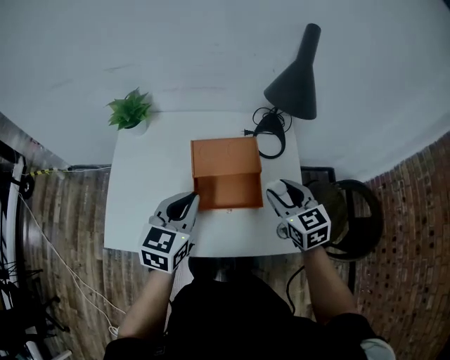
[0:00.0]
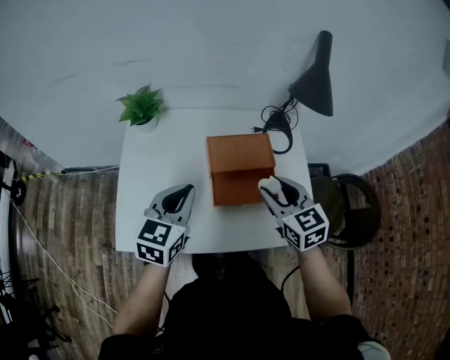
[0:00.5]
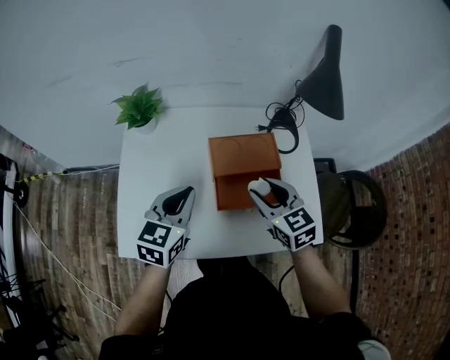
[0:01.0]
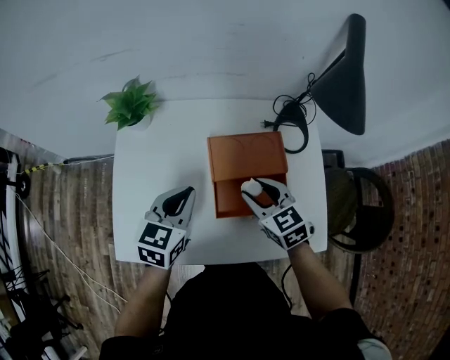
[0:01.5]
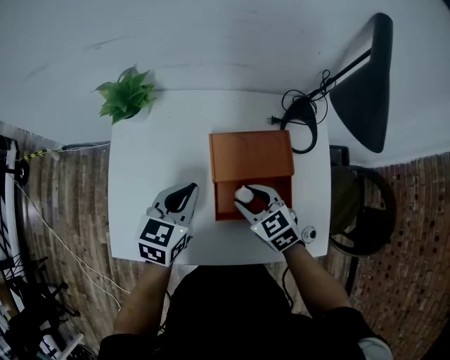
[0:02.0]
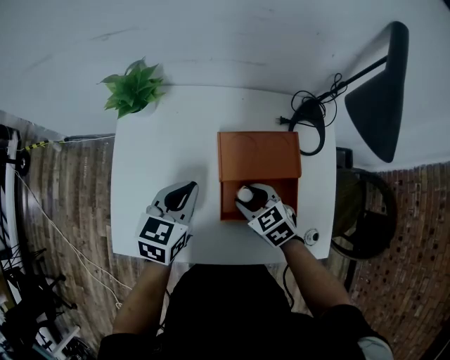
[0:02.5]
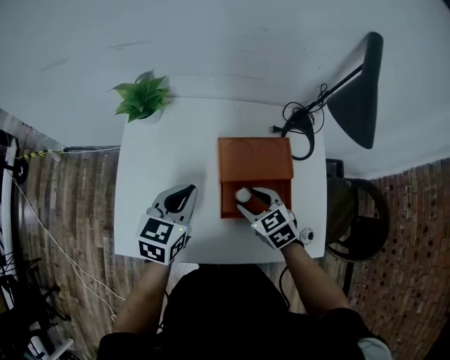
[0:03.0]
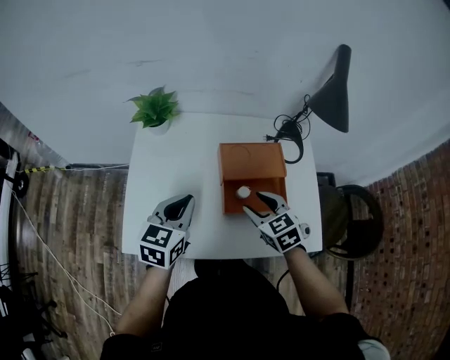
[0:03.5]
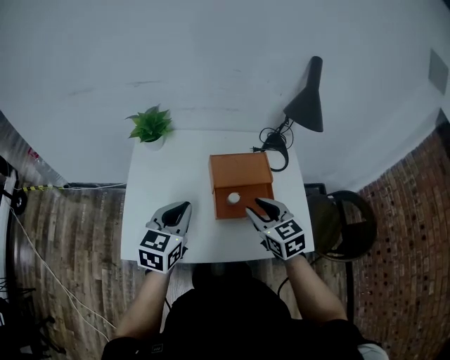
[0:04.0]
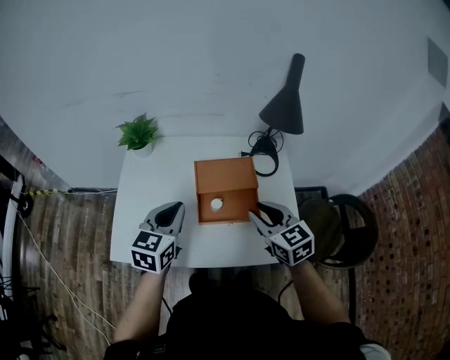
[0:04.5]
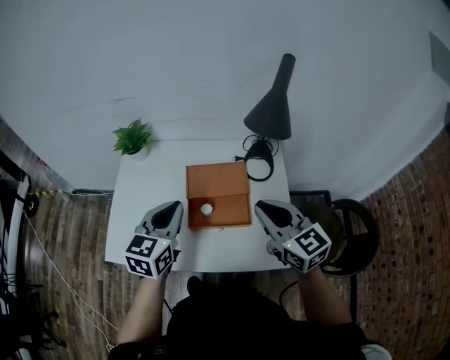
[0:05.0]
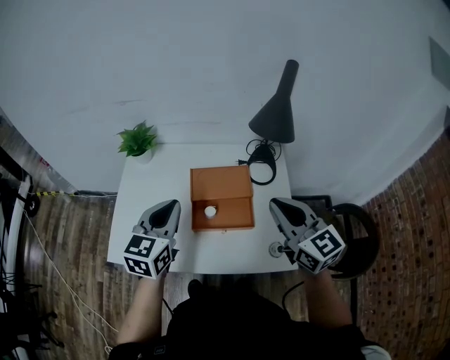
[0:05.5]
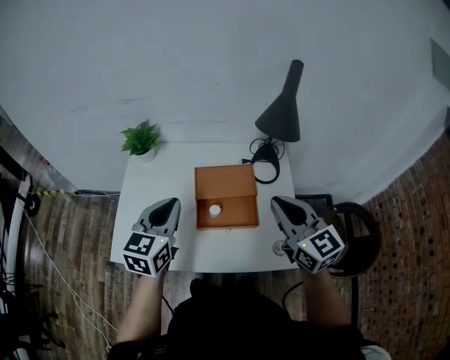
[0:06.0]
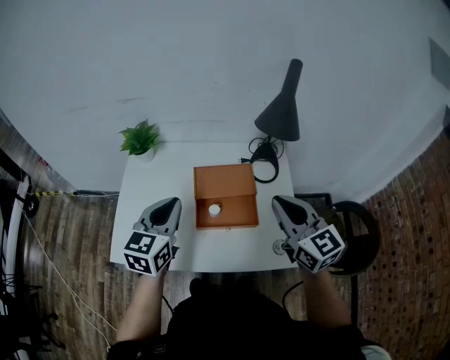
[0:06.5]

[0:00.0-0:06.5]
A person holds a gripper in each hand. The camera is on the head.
0:00.0 to 0:02.0: The right gripper heads to the left and downward, covering roughly 20 cm, and changes its angle by approximately 20 degrees. Meanwhile the left gripper travels downward, forward and to the left by roughly 15 cm.
0:02.0 to 0:04.5: The right gripper heads upward, backward and to the right, covering about 20 cm, and rotates about 20 degrees, while the left gripper goes approximately 15 cm upward and backward.
0:04.5 to 0:06.5: The right gripper is displaced upward and to the right by roughly 10 cm, and closes. The left gripper heads upward, covering some 5 cm.

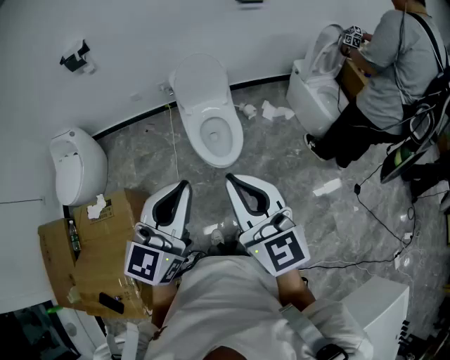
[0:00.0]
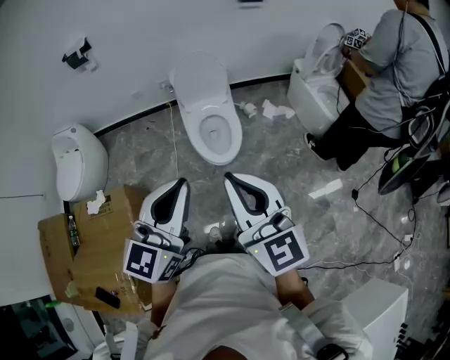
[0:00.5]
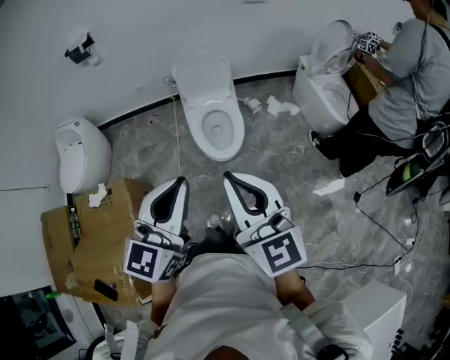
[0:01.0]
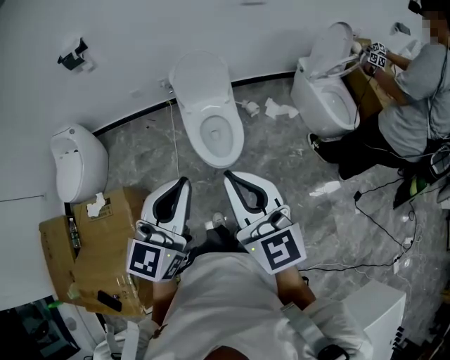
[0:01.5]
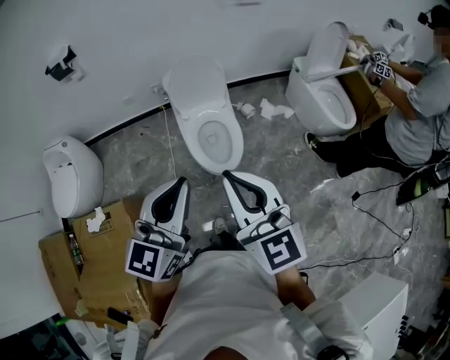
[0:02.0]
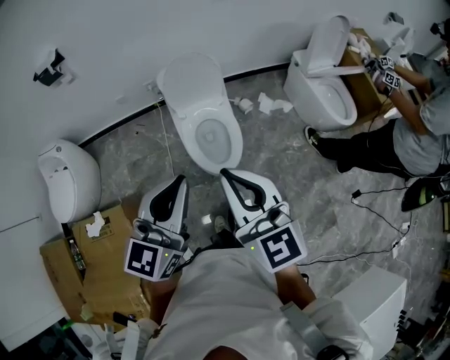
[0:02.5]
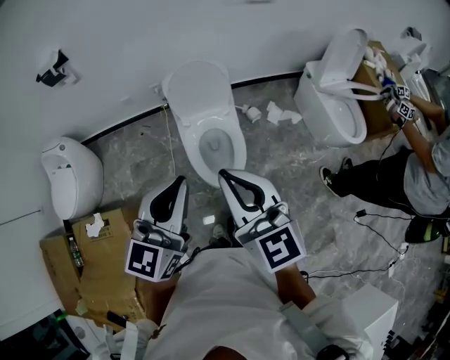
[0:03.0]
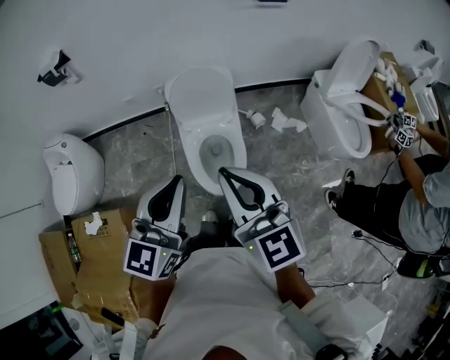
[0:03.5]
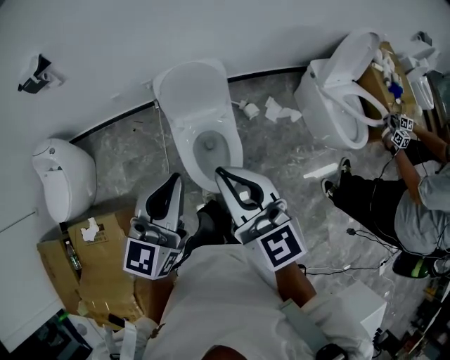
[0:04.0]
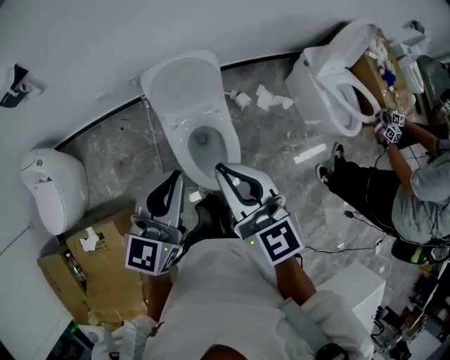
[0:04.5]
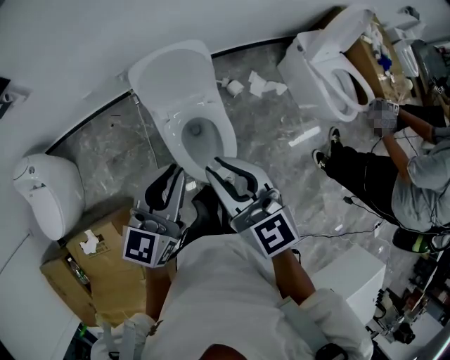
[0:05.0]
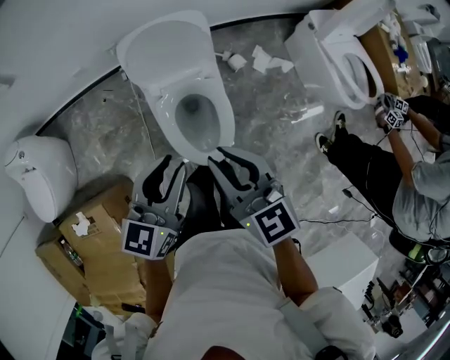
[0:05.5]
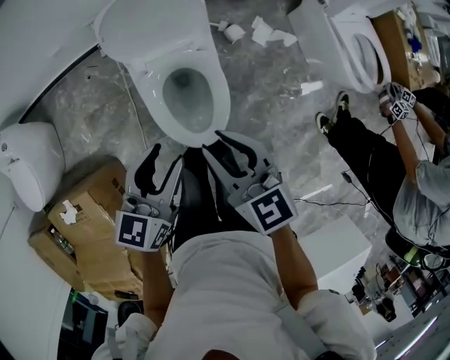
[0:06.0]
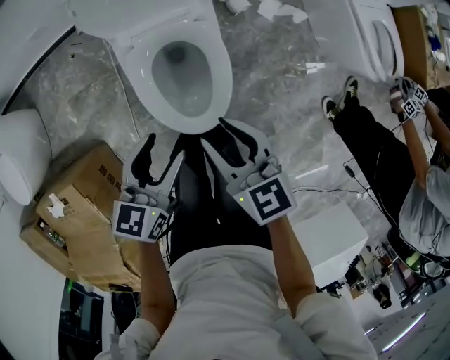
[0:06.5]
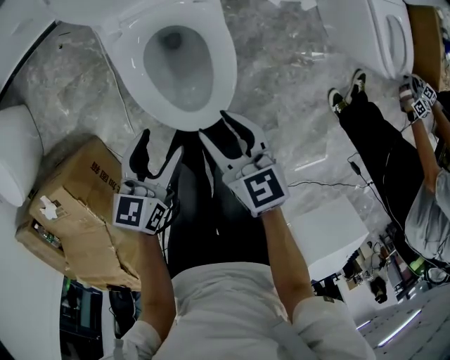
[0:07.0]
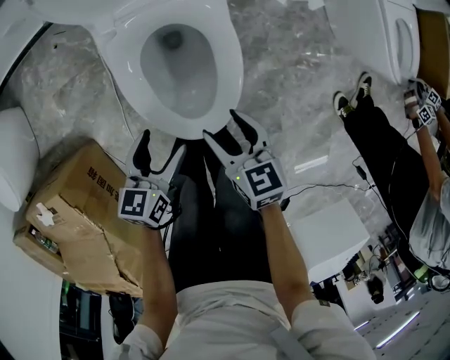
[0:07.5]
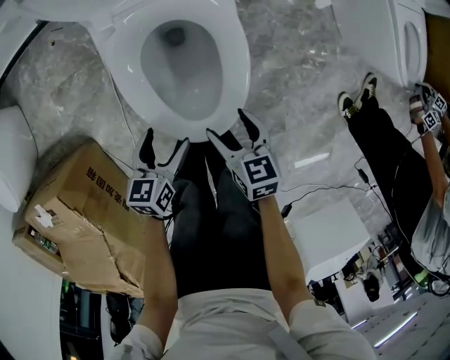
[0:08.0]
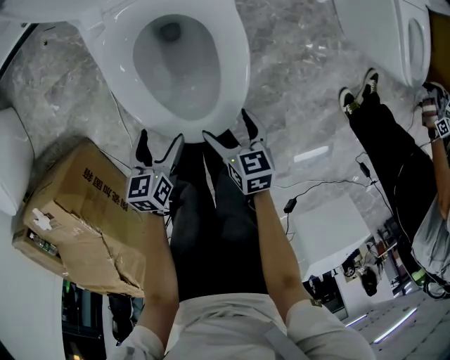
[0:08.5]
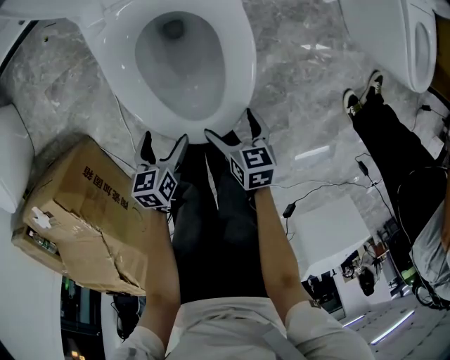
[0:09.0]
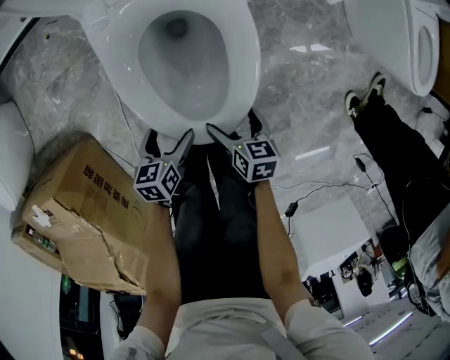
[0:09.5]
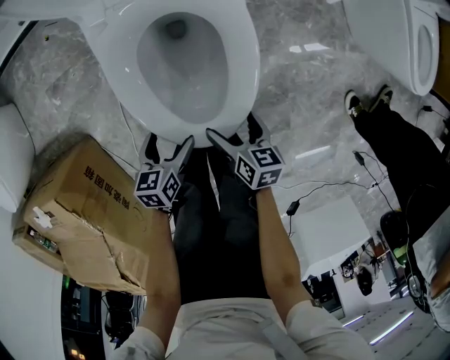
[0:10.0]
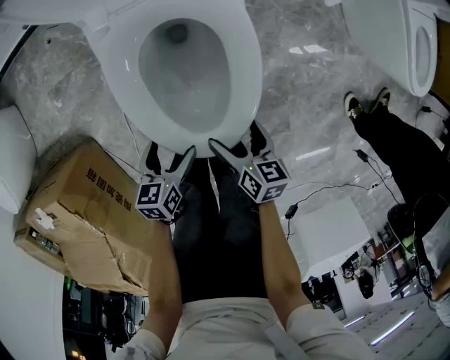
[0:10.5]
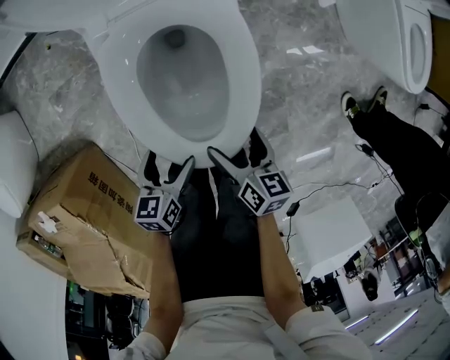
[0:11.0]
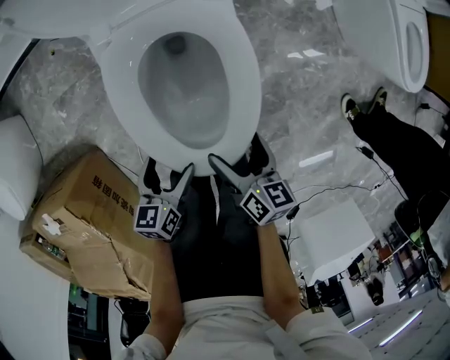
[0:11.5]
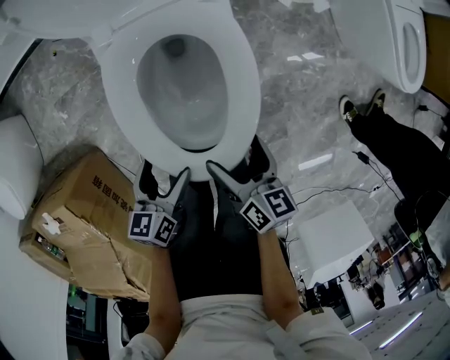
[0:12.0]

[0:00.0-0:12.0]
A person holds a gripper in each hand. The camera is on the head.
0:00.0 to 0:02.0: Both grippers travel together forward, approximately 10 cm.
0:02.0 to 0:04.0: Both grippers move forward, about 25 cm.
0:04.0 to 0:06.0: Both grippers travel together downward, roughly 25 cm. The left gripper swivels about 30 degrees, and opens. The right gripper changes its angle by some 30 degrees.
0:06.0 to 0:08.0: Both grippers travel together downward, about 40 cm. The left gripper swivels about 30 degrees, and opens up. Meanwhile the right gripper swivels some 30 degrees, and opens.
0:08.0 to 0:10.0: Both grippers move downward, roughly 10 cm.
0:10.0 to 0:12.0: Both grippers move upward, approximately 15 cm.

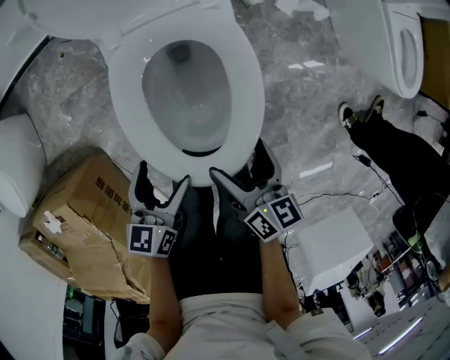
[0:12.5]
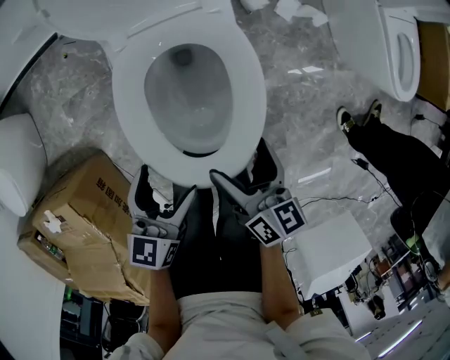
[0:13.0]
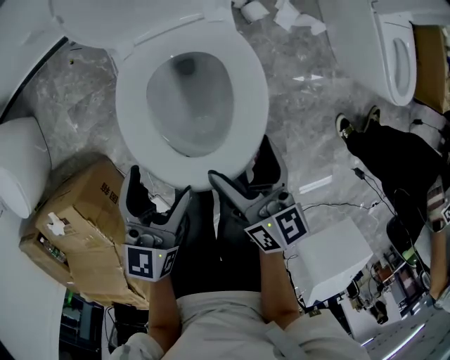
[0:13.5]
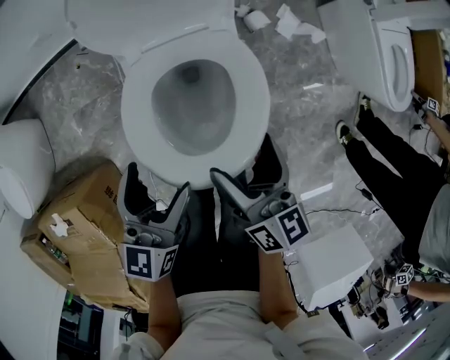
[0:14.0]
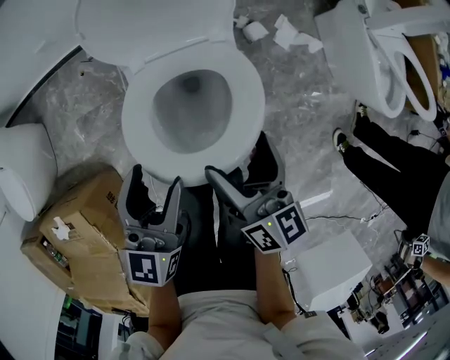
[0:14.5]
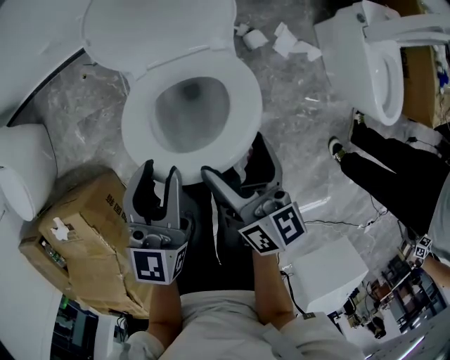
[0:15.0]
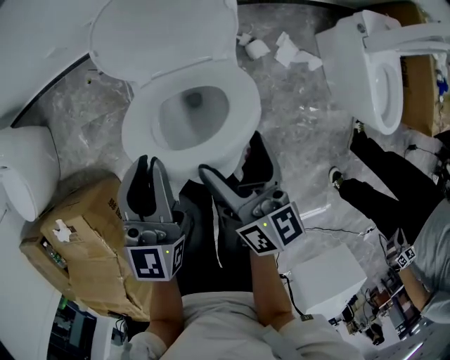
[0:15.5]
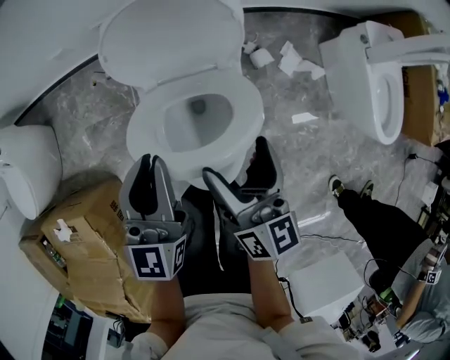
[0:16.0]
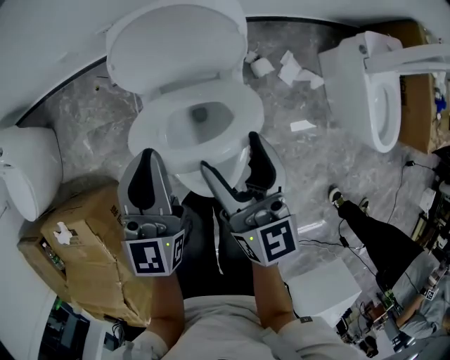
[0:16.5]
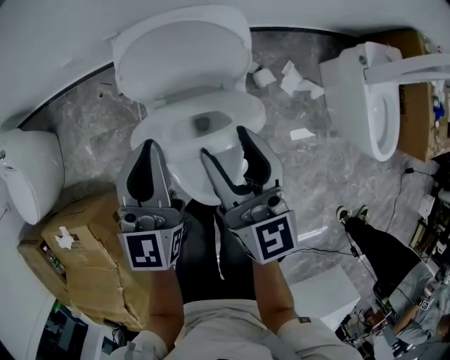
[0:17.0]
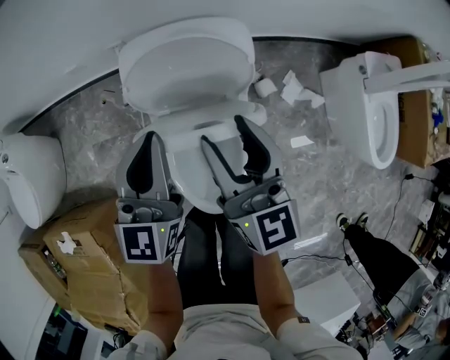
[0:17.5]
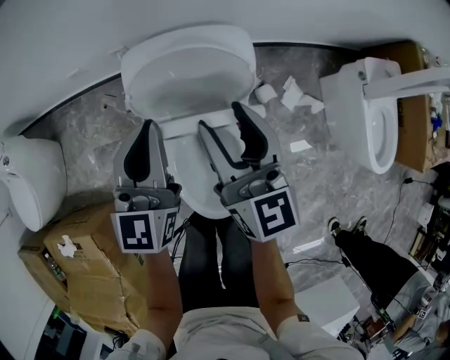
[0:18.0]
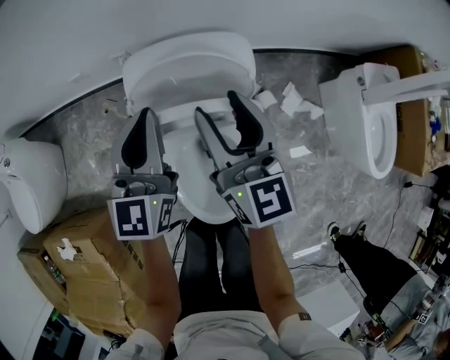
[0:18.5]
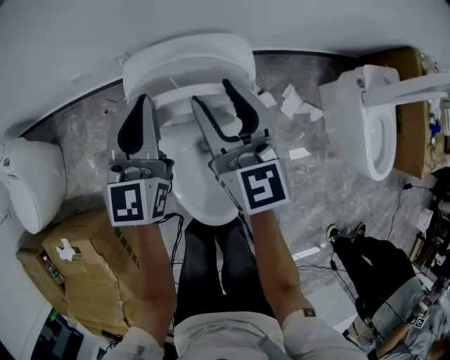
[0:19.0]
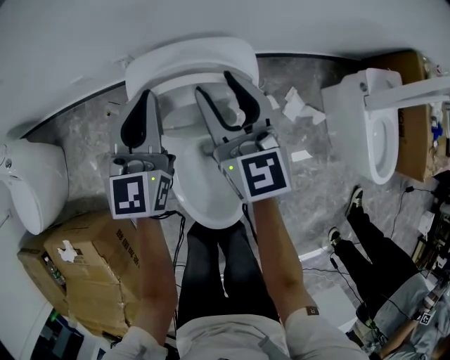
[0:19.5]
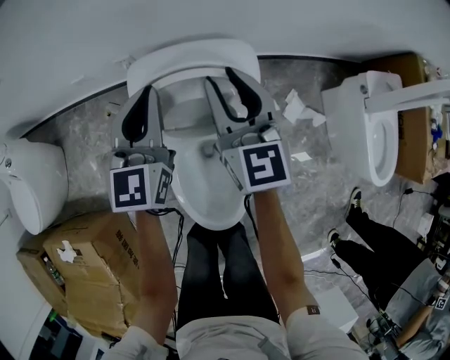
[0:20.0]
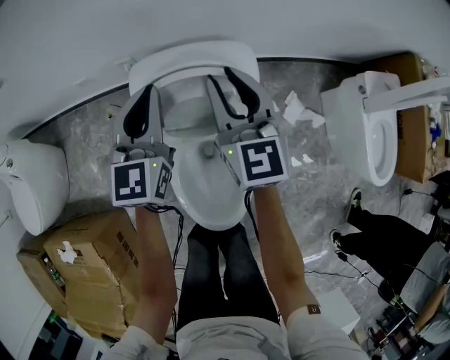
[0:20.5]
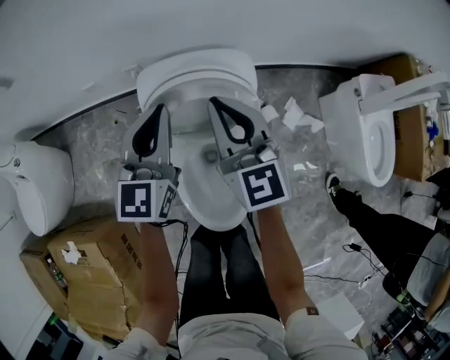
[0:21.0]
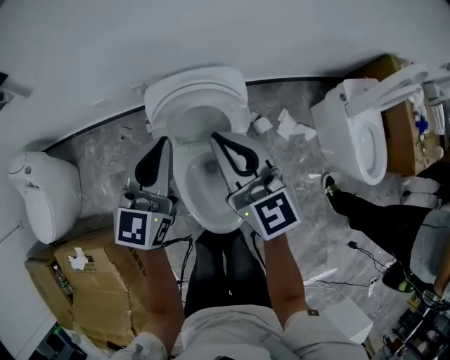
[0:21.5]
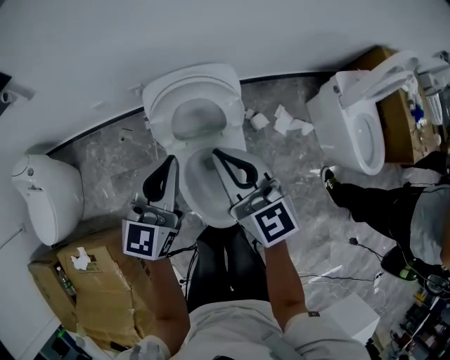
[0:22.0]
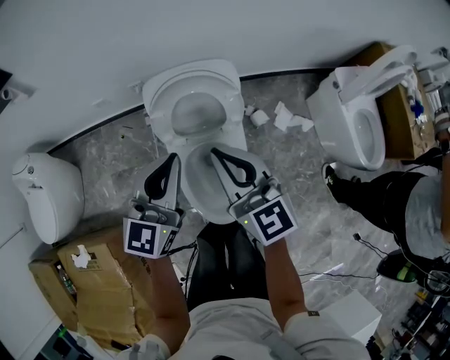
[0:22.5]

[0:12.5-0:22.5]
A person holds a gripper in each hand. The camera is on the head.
0:12.5 to 0:14.5: The grippers both shift upward and forward by roughly 20 cm. The left gripper turns by about 30 degrees.
0:14.5 to 0:16.5: The grippers both shift forward and upward by roughly 15 cm. The right gripper swivels approximately 20 degrees. The left gripper closes.
0:16.5 to 0:18.5: Both grippers travel together forward, some 15 cm.
0:18.5 to 0:20.5: Both grippers travel together forward, roughly 5 cm.
0:20.5 to 0:22.5: The grippers both shift backward and upward by roughly 25 cm.
